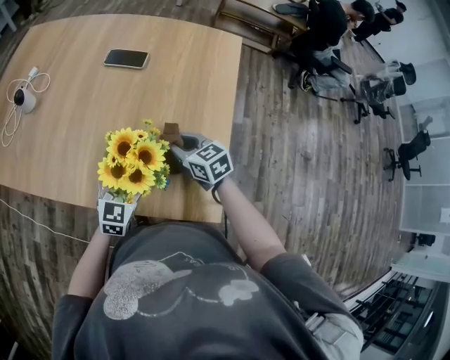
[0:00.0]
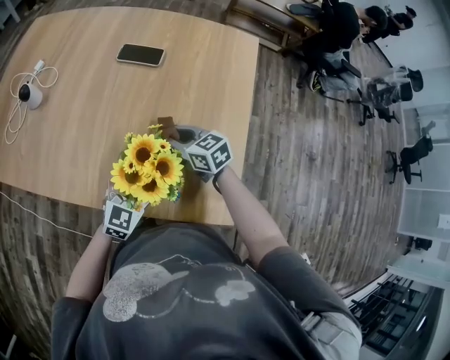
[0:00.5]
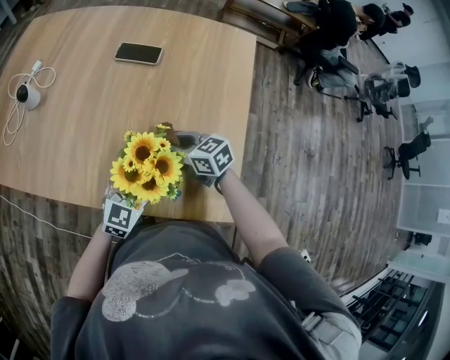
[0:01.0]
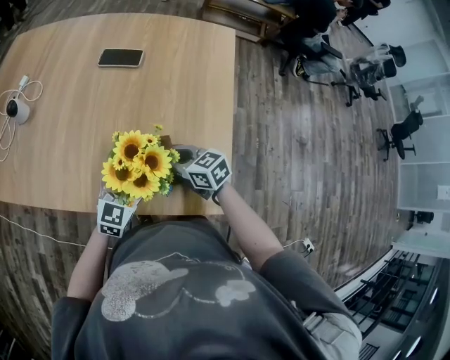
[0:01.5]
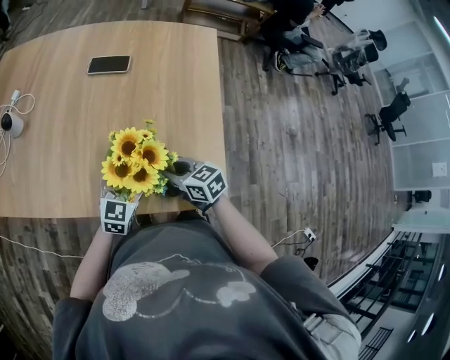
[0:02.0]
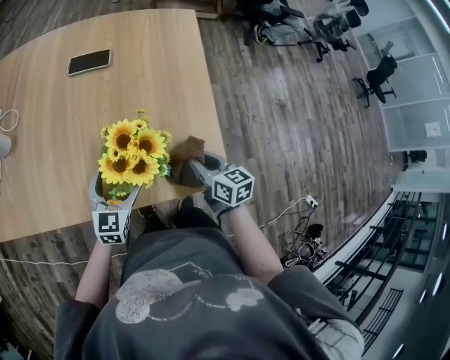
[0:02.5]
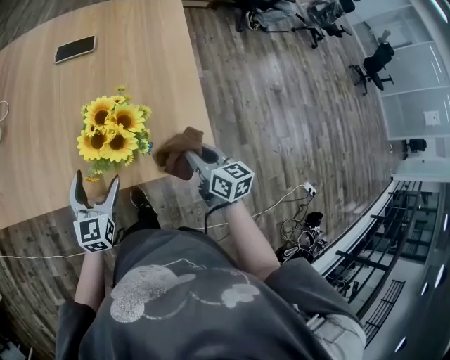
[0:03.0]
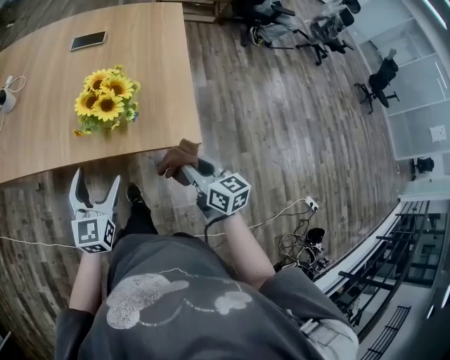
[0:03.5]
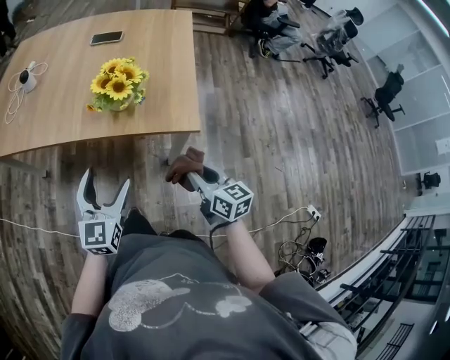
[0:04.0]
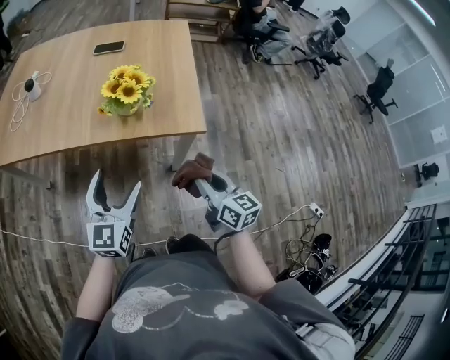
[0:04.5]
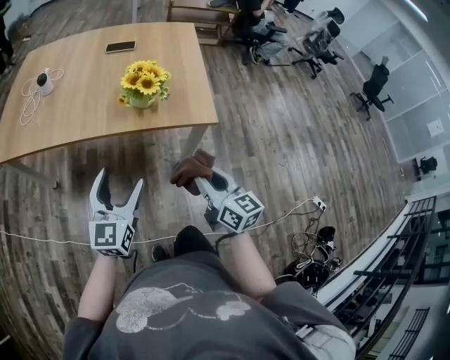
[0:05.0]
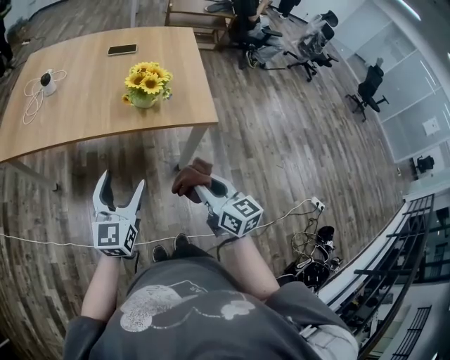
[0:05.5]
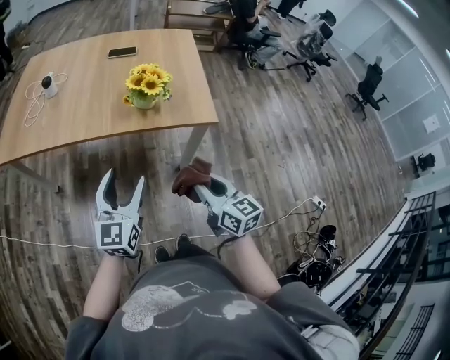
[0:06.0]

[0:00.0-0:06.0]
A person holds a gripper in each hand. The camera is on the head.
0:00.0 to 0:02.0: The right gripper shifts some 10 cm backward and to the left.
0:02.0 to 0:04.0: The right gripper shifts some 30 cm backward, and swivels approximately 30 degrees; the left gripper travels backward and upward by approximately 30 cm.
0:04.0 to 0:06.0: Both grippers travel together to the left, backward and upward, approximately 15 cm.

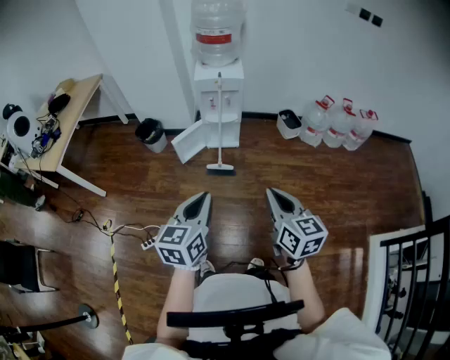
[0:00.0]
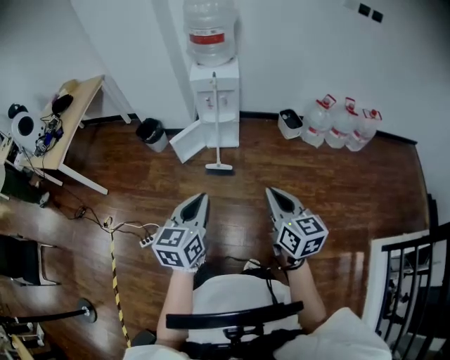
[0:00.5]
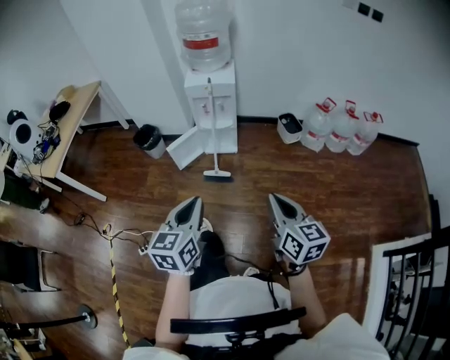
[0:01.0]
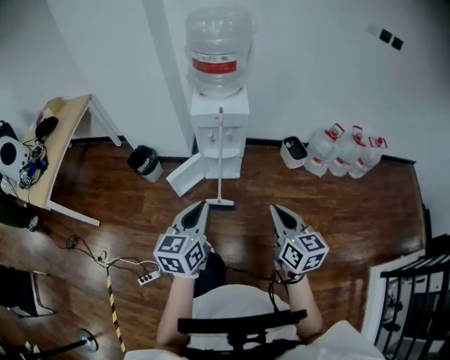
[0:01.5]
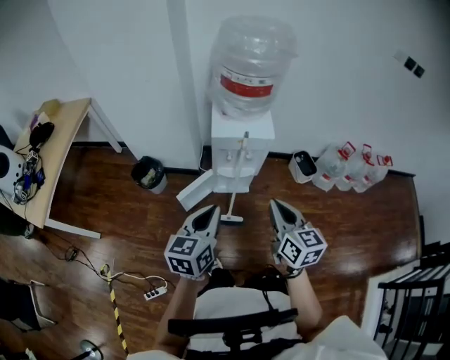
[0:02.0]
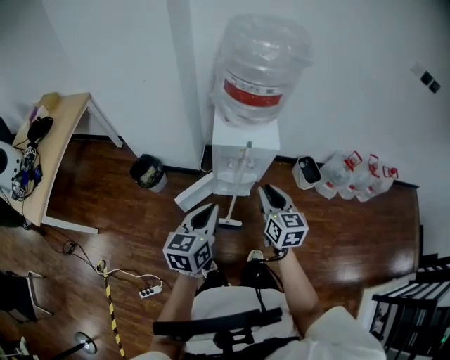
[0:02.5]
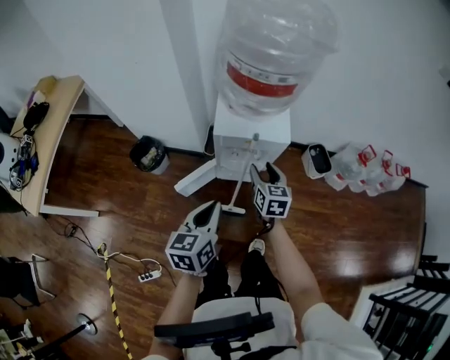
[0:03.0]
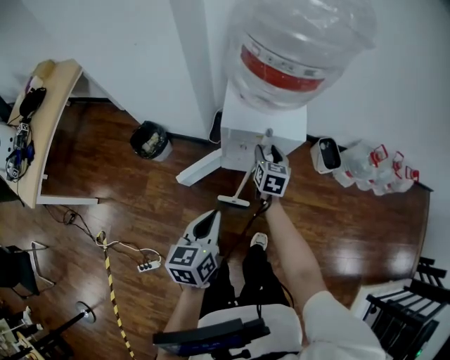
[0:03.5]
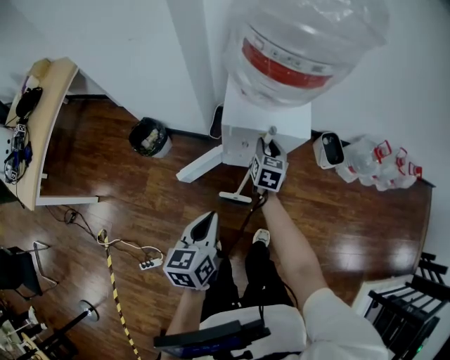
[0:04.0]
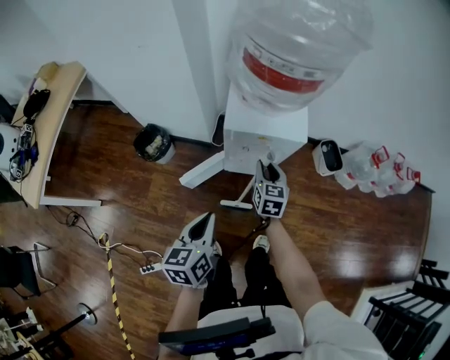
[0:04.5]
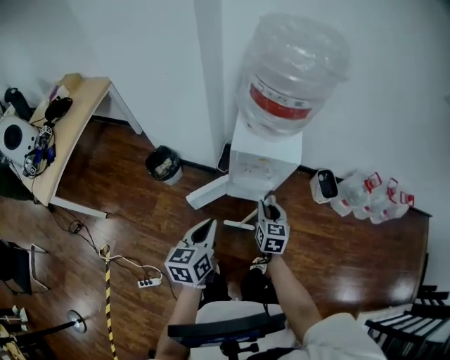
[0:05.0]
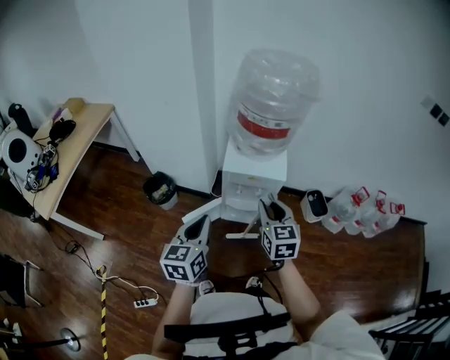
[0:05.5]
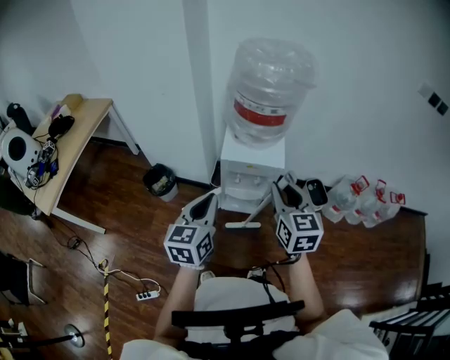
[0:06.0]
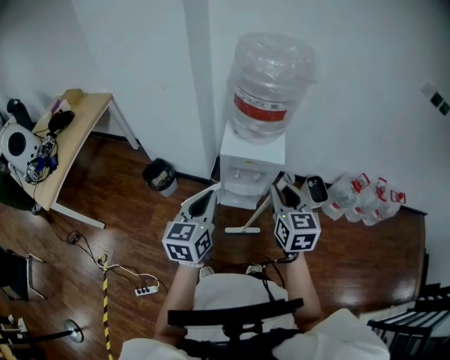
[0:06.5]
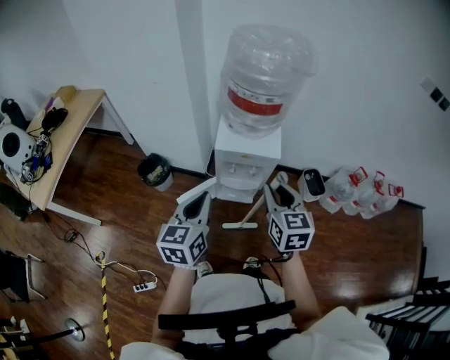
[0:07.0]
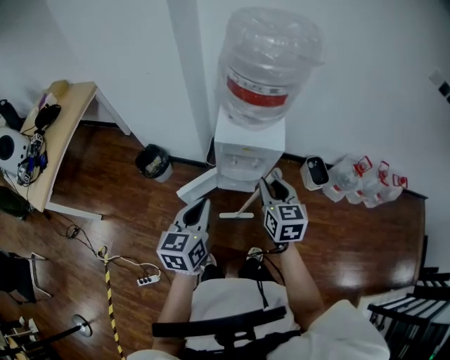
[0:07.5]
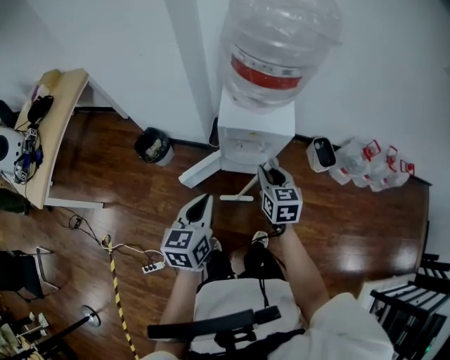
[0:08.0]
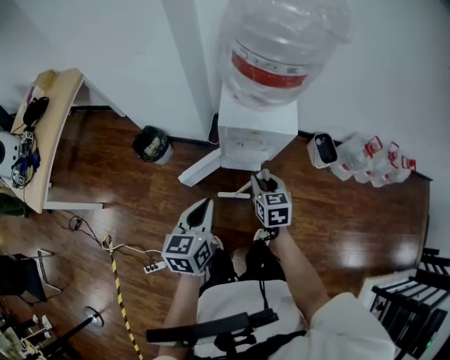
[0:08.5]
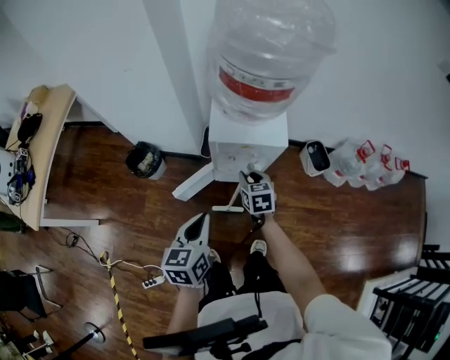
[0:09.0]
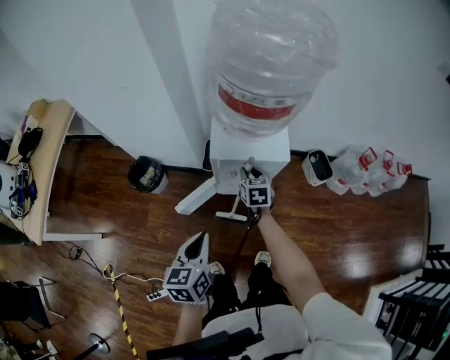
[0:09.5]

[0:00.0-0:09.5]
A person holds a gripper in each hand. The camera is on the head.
0:00.0 to 0:02.0: The two grippers travel together, forward, some 40 cm.
0:02.0 to 0:04.0: The left gripper is displaced downward and forward by about 20 cm, and swivels about 20 degrees, while the right gripper goes roughly 40 cm forward and downward, changes its angle by about 20 degrees, and opens its fingers.
0:04.0 to 0:05.5: The left gripper travels upward by roughly 15 cm. Meanwhile the right gripper is displaced upward and backward by some 30 cm, and swivels approximately 20 degrees.
0:05.5 to 0:07.5: The right gripper travels upward and back again, roughly 10 cm each way.
0:07.5 to 0:09.5: The left gripper goes roughly 10 cm downward. Meanwhile the right gripper moves downward and forward, about 25 cm.

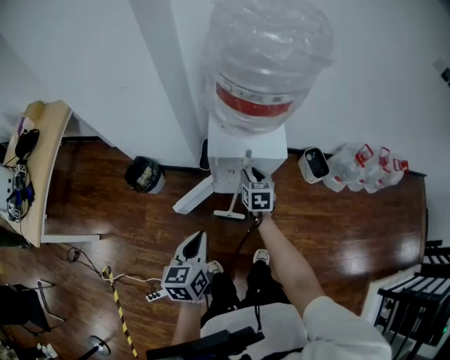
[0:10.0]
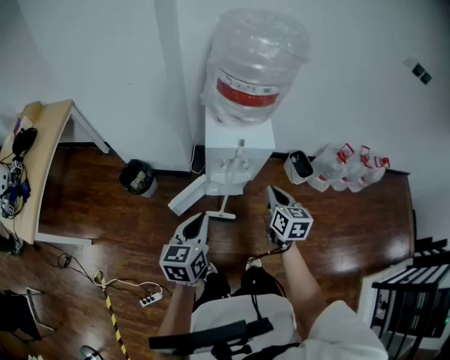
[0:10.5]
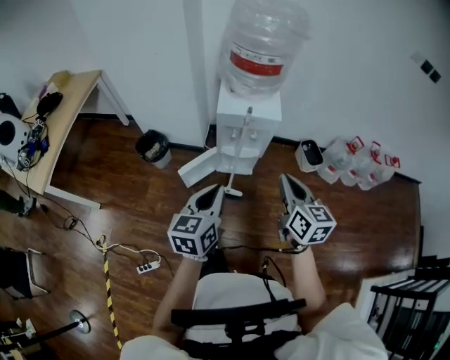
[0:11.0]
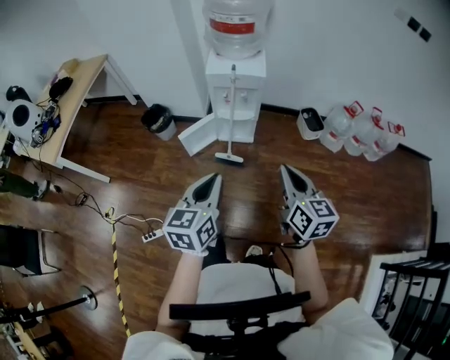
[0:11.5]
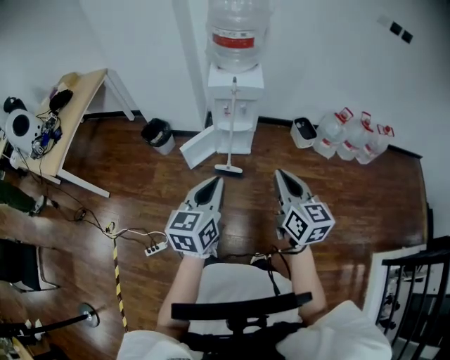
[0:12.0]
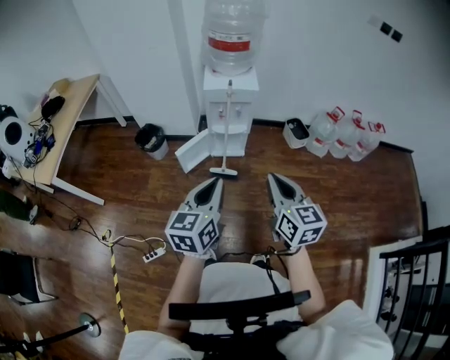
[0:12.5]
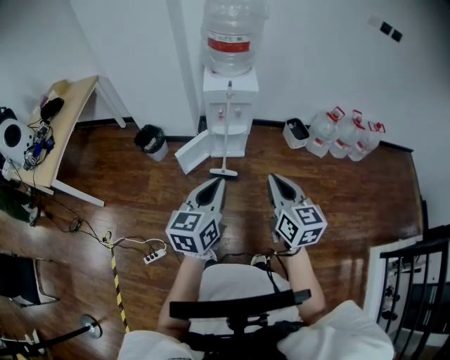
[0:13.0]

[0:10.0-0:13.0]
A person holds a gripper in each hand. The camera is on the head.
0:10.0 to 0:11.5: The left gripper is displaced backward, to the right and upward by roughly 35 cm, while the right gripper is displaced backward and upward by about 50 cm, swivels roughly 30 degrees, and closes.
0:11.5 to 0:13.0: The left gripper travels to the left by some 5 cm, while the right gripper goes roughly 10 cm to the left and backward.

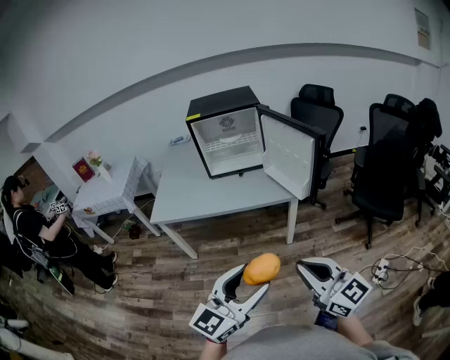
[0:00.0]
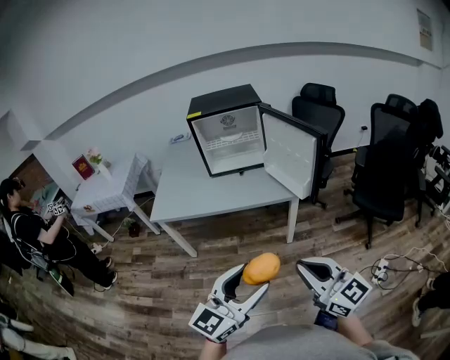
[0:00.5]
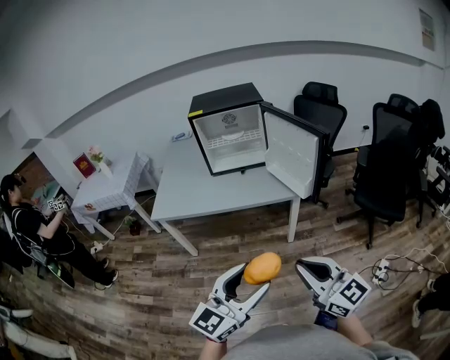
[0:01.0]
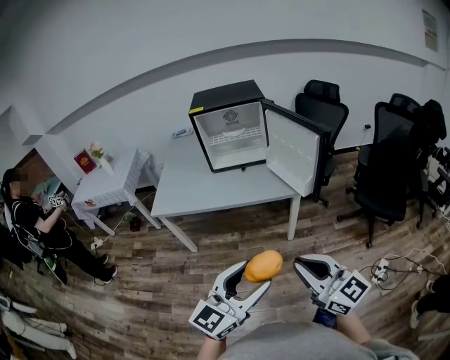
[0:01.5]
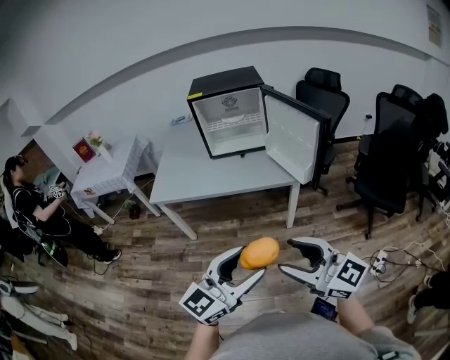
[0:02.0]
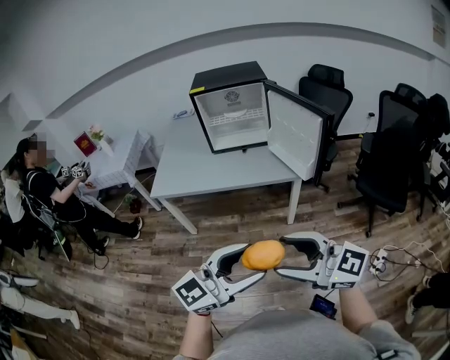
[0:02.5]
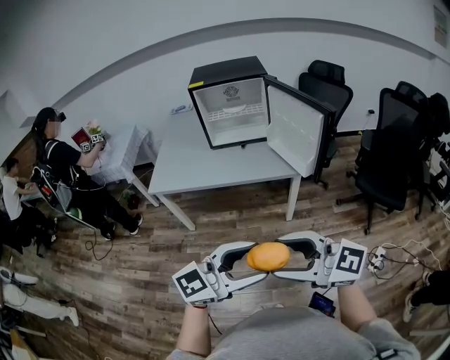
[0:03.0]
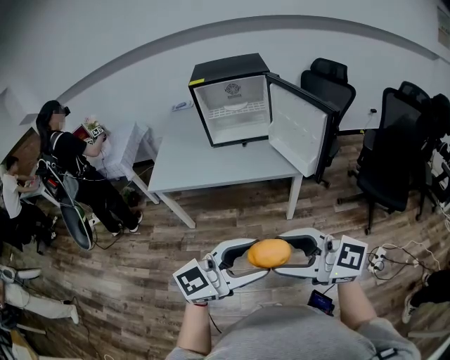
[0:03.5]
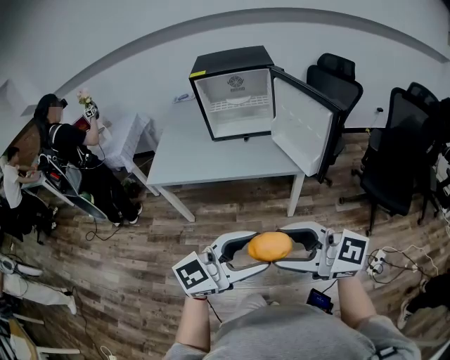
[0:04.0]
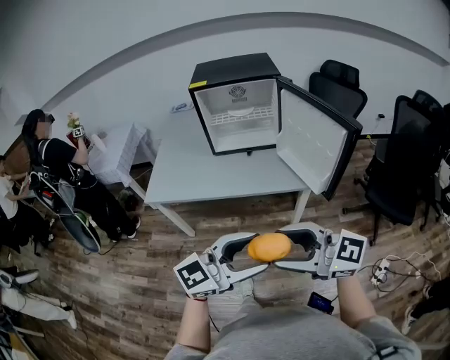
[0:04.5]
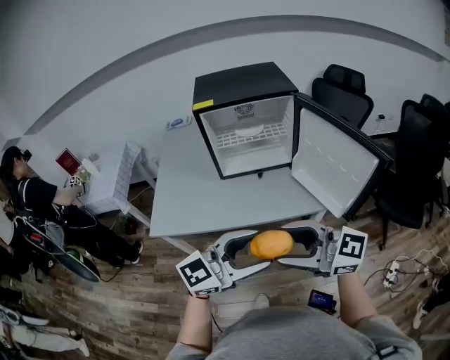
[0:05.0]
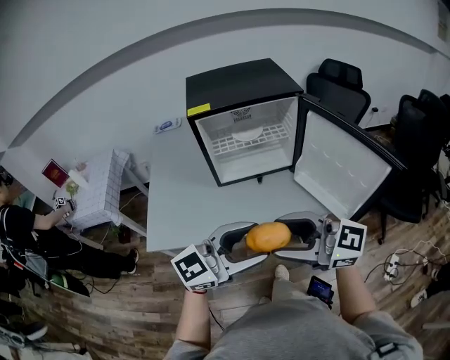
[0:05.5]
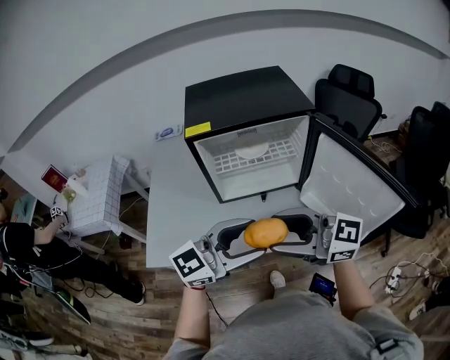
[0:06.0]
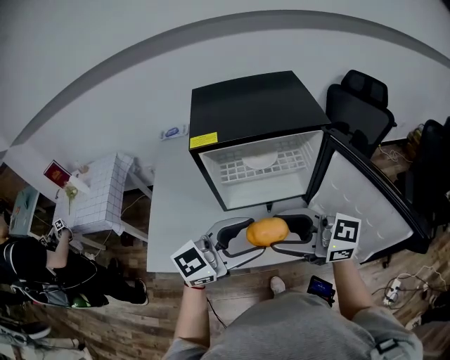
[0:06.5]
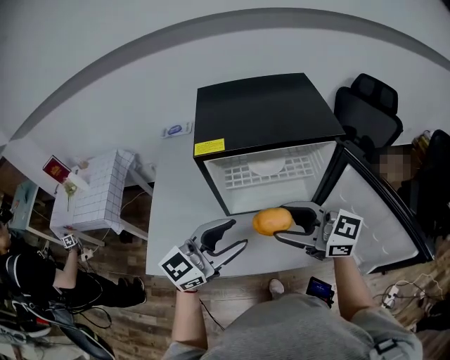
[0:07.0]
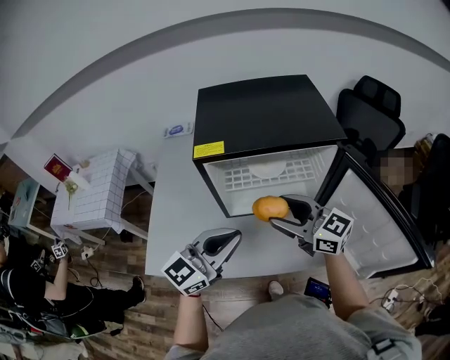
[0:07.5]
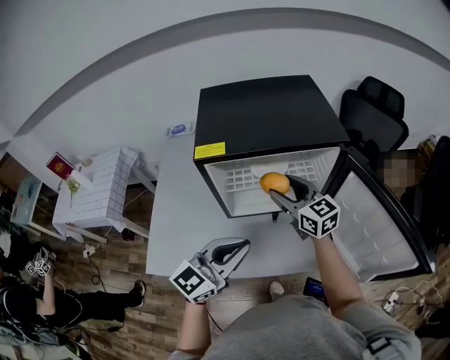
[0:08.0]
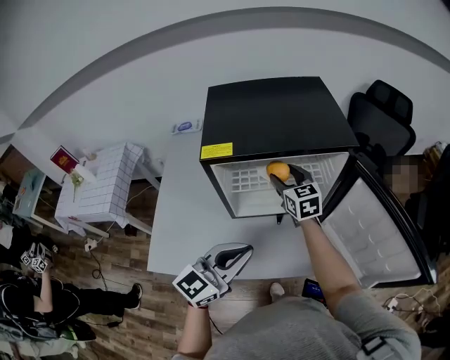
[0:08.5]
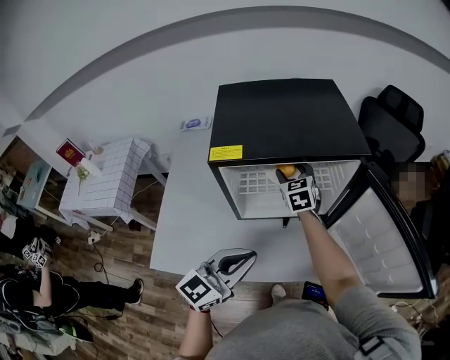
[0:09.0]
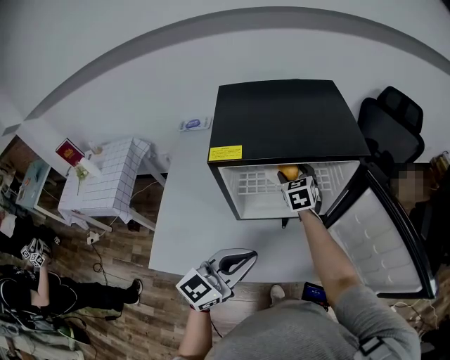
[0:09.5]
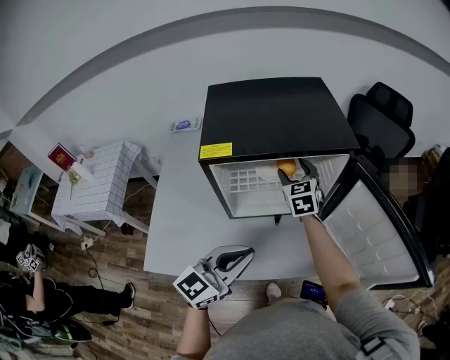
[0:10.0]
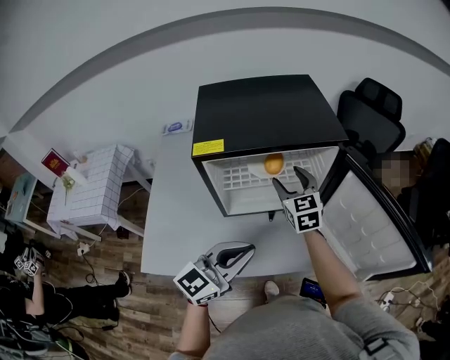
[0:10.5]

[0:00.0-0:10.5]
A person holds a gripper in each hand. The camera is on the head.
0:00.0 to 0:02.0: The right gripper opens.
0:02.0 to 0:04.0: The left gripper shifts by approximately 5 cm.
0:04.0 to 0:06.5: The two grippers travel together, about 50 cm.
0:06.5 to 0:08.5: The left gripper shifts by about 10 cm, and closes, while the right gripper shifts by roughly 35 cm, and rotates about 50 degrees.
0:08.5 to 0:10.5: The right gripper moves some 5 cm.
